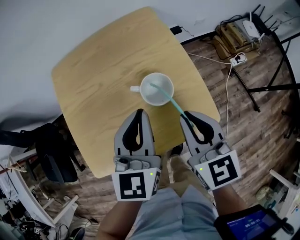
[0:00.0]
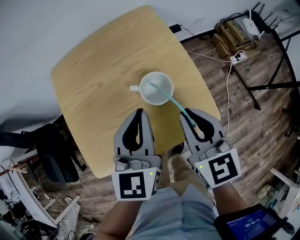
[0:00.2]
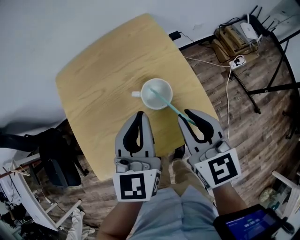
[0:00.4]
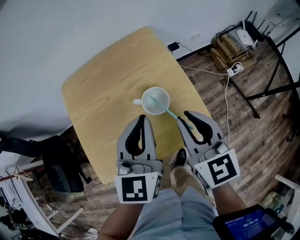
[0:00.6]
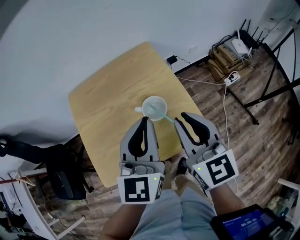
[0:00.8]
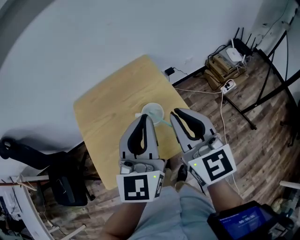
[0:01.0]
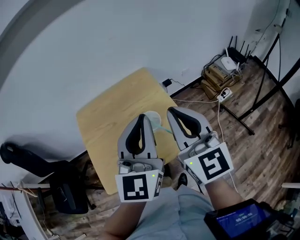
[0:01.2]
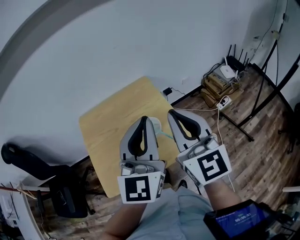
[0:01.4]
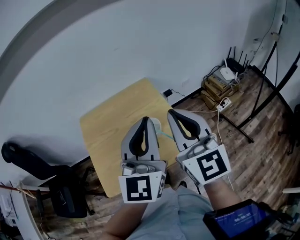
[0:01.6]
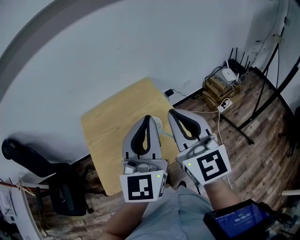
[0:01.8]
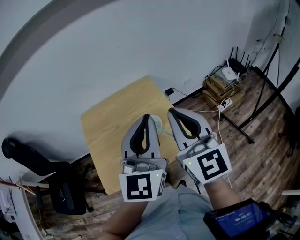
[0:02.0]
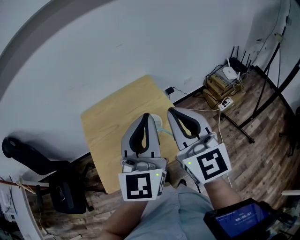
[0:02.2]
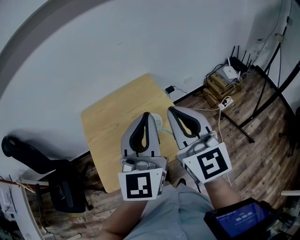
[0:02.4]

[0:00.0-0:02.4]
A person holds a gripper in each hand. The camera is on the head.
0:00.0 to 0:01.2: The grippers both shift upward by some 20 cm. The right gripper changes its angle by roughly 30 degrees; the left gripper rotates some 20 degrees.
0:01.2 to 0:02.4: There are only small adjustments of the grippers.

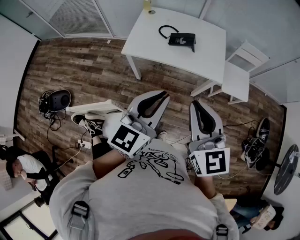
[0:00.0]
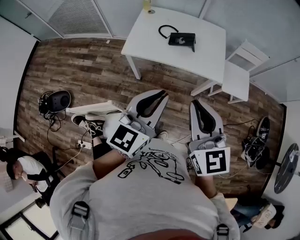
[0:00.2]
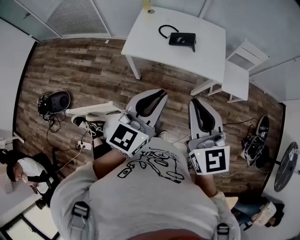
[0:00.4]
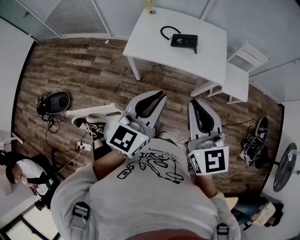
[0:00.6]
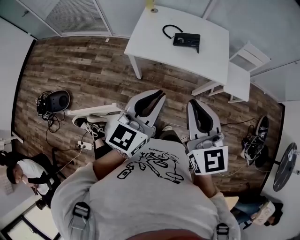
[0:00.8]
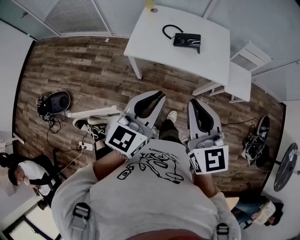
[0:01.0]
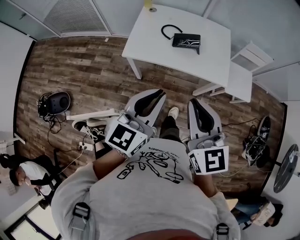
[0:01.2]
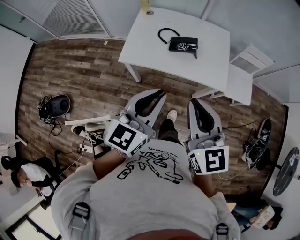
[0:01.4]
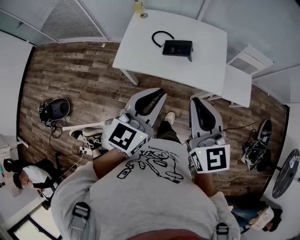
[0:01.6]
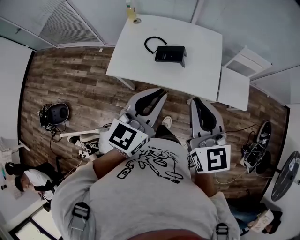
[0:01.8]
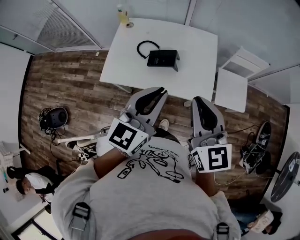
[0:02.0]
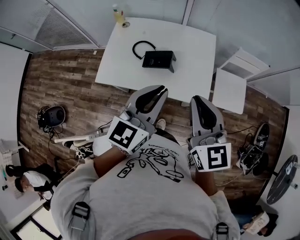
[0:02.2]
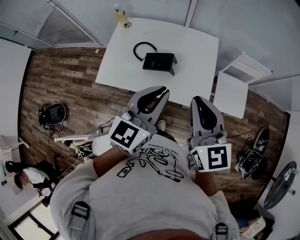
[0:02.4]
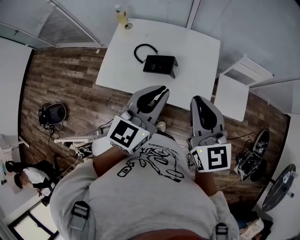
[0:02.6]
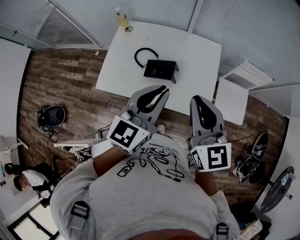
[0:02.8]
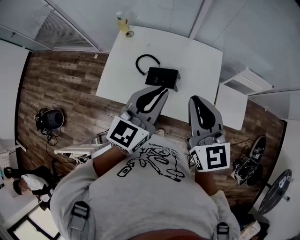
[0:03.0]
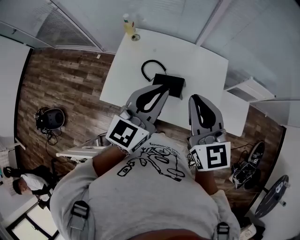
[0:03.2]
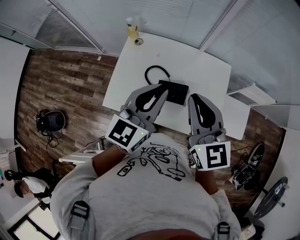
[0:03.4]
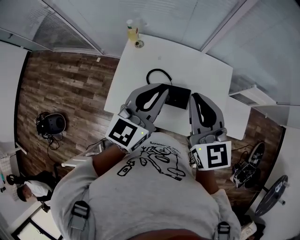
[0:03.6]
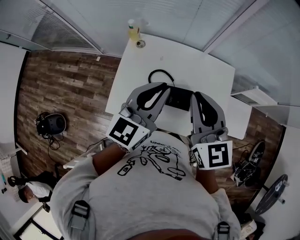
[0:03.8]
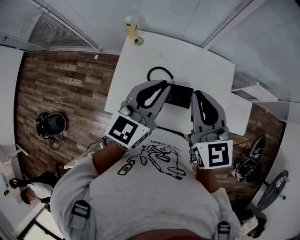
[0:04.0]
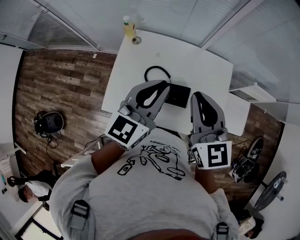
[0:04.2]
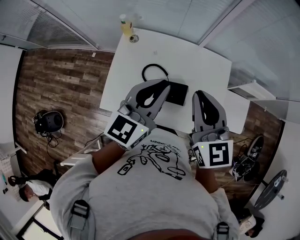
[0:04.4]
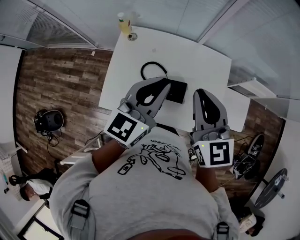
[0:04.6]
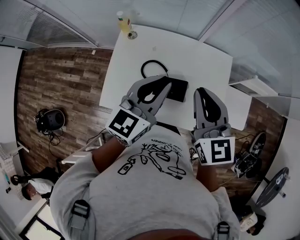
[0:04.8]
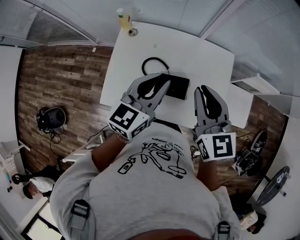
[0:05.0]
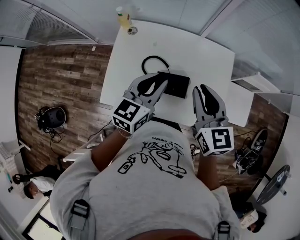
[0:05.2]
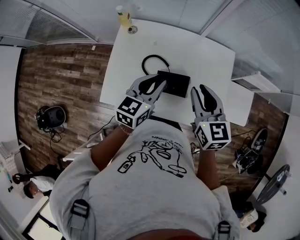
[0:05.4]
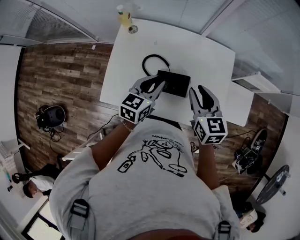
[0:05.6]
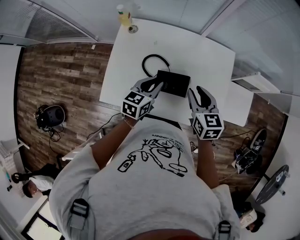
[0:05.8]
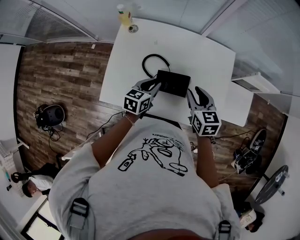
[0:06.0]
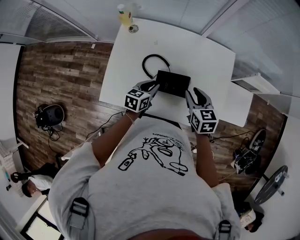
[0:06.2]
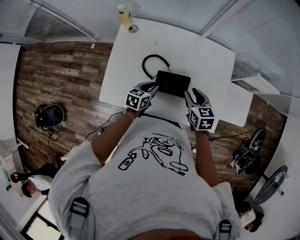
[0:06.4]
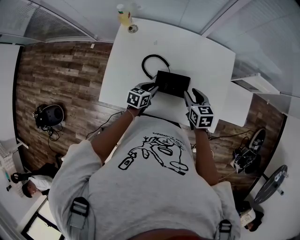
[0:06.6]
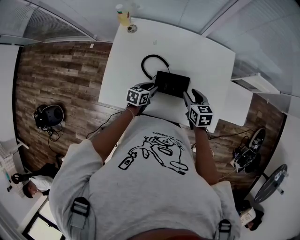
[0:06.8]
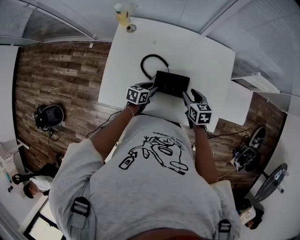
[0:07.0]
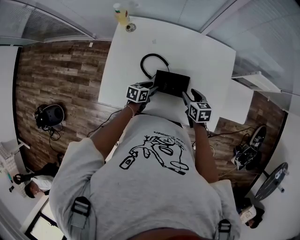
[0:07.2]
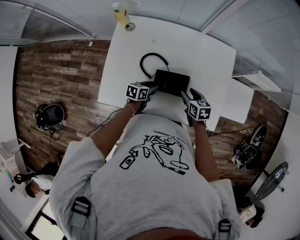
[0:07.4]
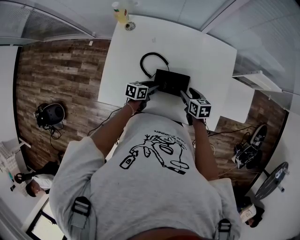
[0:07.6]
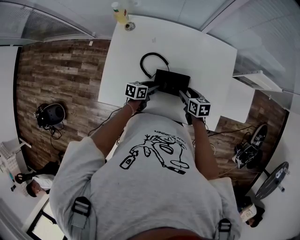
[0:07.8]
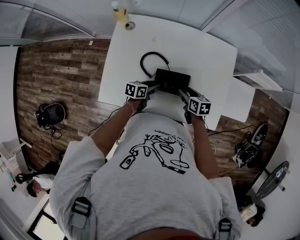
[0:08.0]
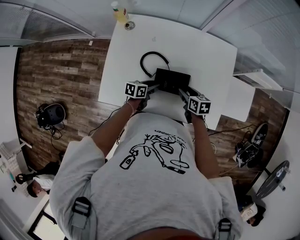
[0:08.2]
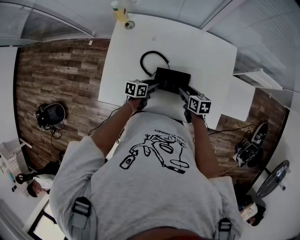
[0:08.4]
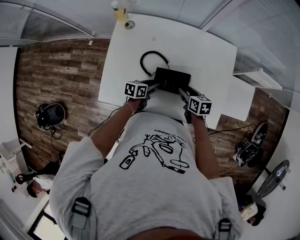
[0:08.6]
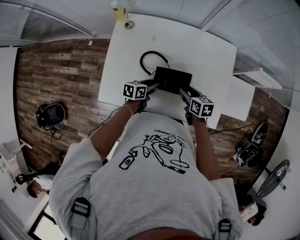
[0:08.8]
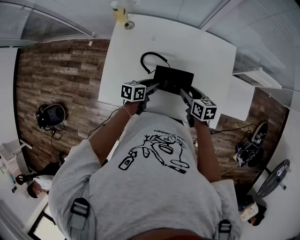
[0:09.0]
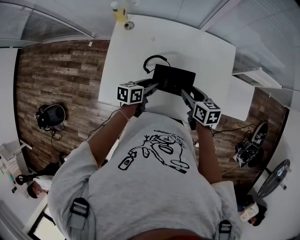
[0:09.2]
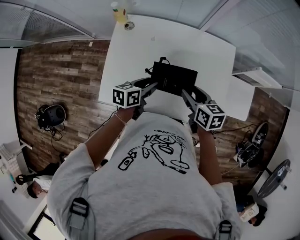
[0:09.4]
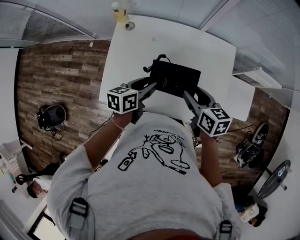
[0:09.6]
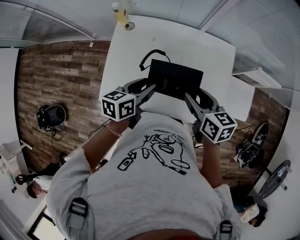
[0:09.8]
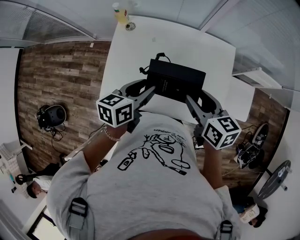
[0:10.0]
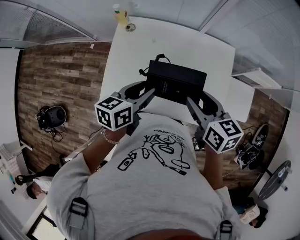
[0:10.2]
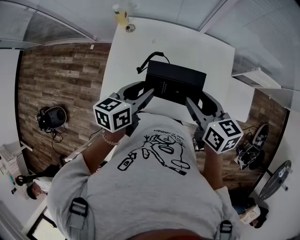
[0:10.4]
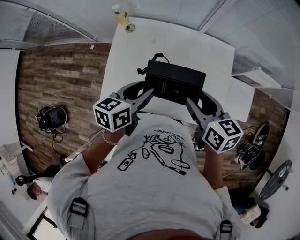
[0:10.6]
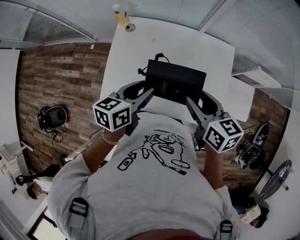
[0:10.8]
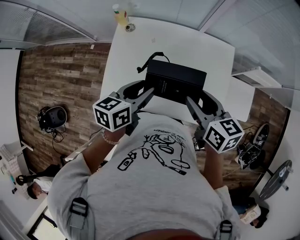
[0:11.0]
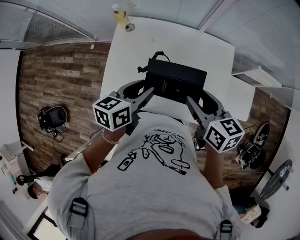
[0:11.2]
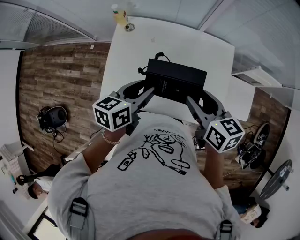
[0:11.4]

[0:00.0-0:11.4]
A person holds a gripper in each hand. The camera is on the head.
0:00.0 to 0:01.4: Both grippers travel together forward, approximately 10 cm.
0:01.4 to 0:02.8: Both grippers travel together forward and to the right, about 30 cm.
0:02.8 to 0:04.2: The two grippers go some 20 cm forward and to the left.
0:04.2 to 0:05.6: Both grippers move downward, approximately 15 cm. The right gripper turns by some 20 degrees, and opens its fingers; the left gripper changes its angle by about 20 degrees.
0:05.6 to 0:07.2: Both grippers travel together downward, approximately 25 cm. The left gripper swivels about 30 degrees; the right gripper rotates some 20 degrees.
0:07.2 to 0:08.6: The grippers stay close to where they were, moving slightly.
0:08.6 to 0:10.0: Both grippers move upward, about 25 cm.
0:10.0 to 0:11.4: The grippers move only a little.

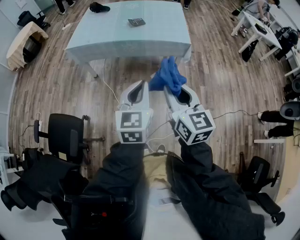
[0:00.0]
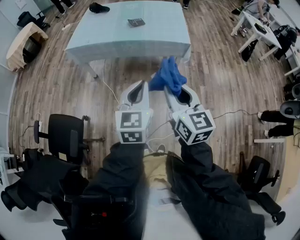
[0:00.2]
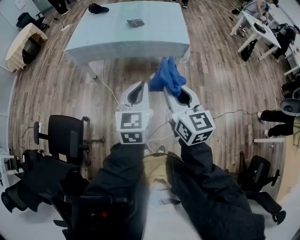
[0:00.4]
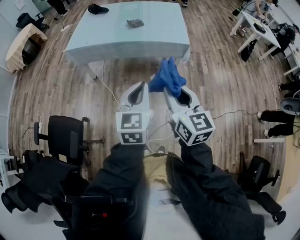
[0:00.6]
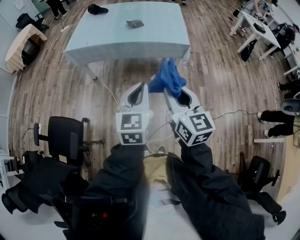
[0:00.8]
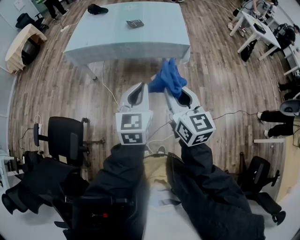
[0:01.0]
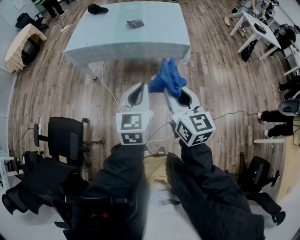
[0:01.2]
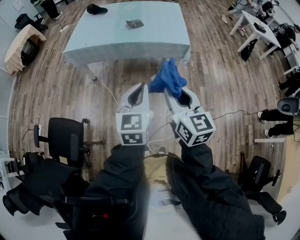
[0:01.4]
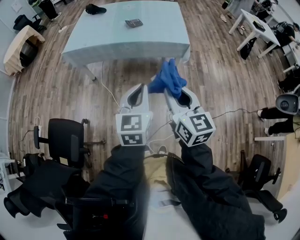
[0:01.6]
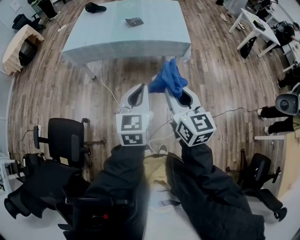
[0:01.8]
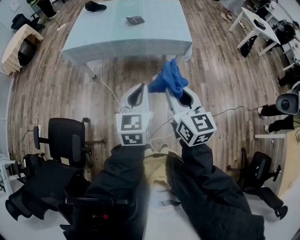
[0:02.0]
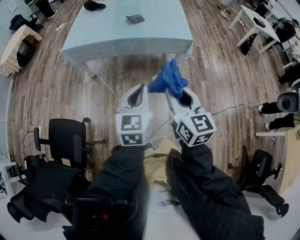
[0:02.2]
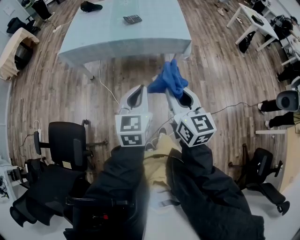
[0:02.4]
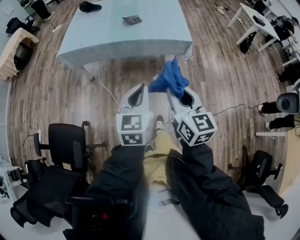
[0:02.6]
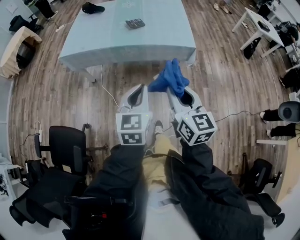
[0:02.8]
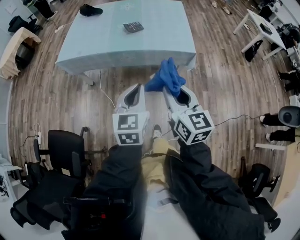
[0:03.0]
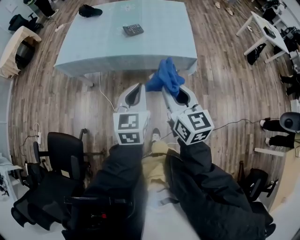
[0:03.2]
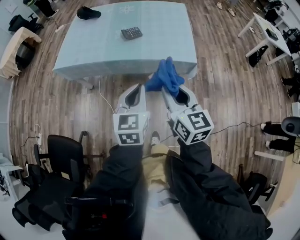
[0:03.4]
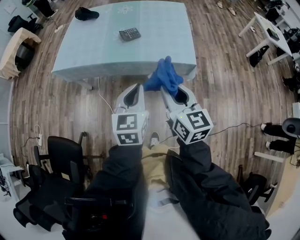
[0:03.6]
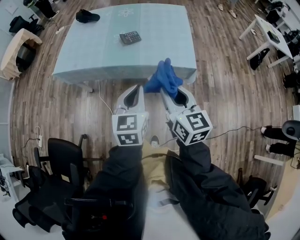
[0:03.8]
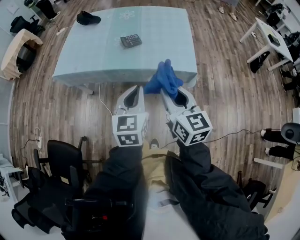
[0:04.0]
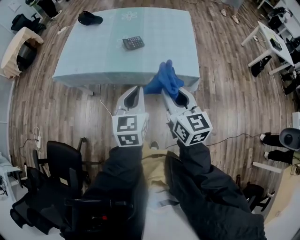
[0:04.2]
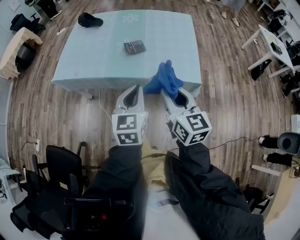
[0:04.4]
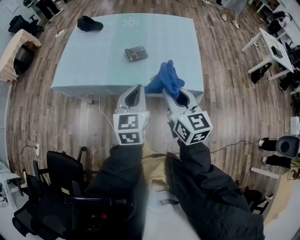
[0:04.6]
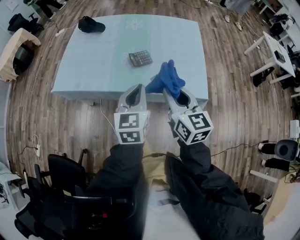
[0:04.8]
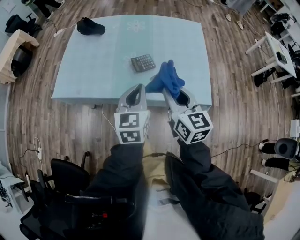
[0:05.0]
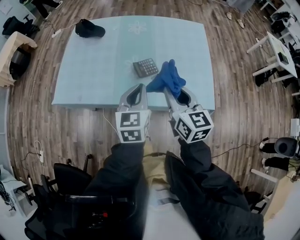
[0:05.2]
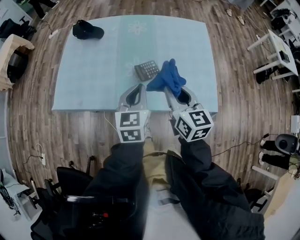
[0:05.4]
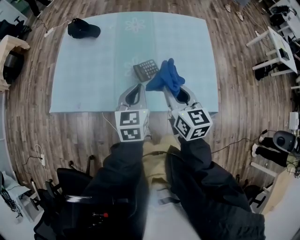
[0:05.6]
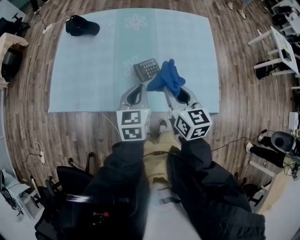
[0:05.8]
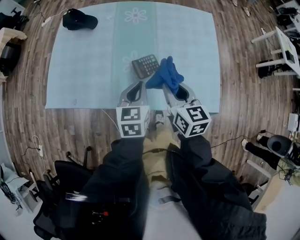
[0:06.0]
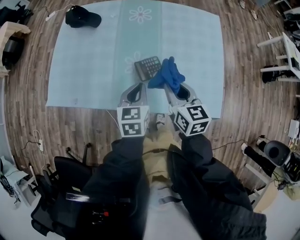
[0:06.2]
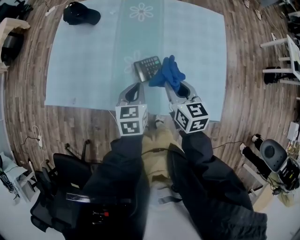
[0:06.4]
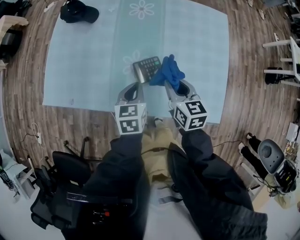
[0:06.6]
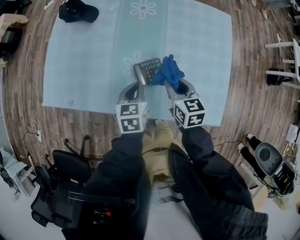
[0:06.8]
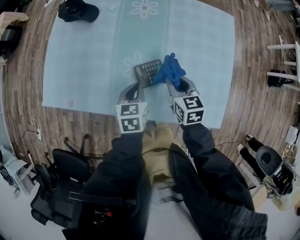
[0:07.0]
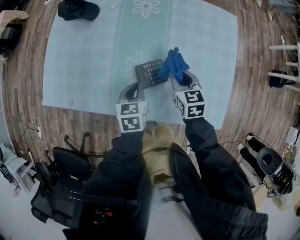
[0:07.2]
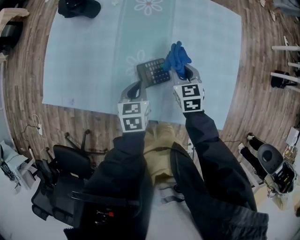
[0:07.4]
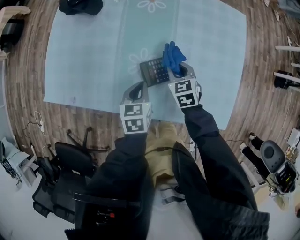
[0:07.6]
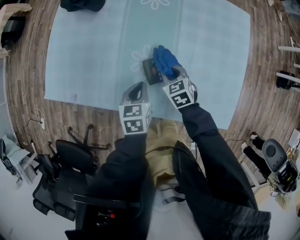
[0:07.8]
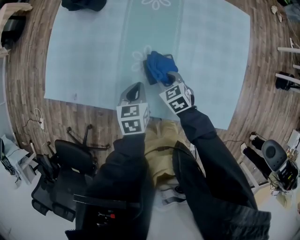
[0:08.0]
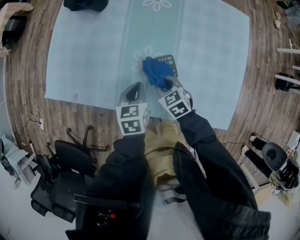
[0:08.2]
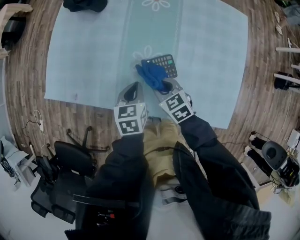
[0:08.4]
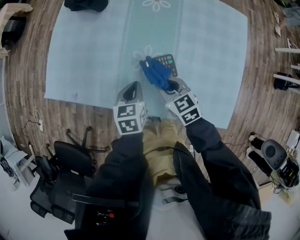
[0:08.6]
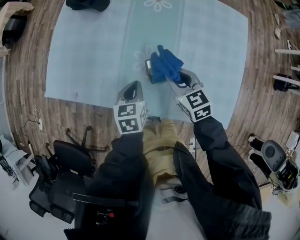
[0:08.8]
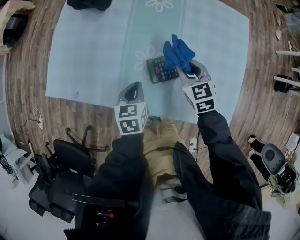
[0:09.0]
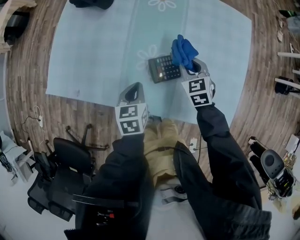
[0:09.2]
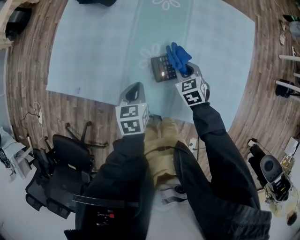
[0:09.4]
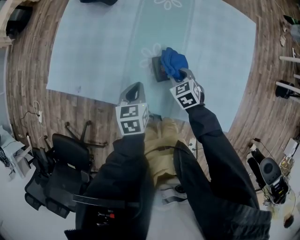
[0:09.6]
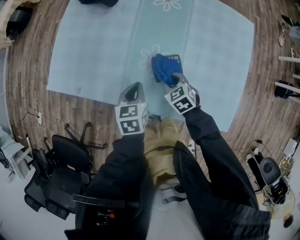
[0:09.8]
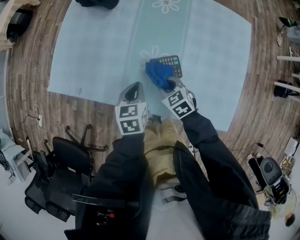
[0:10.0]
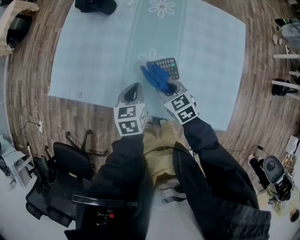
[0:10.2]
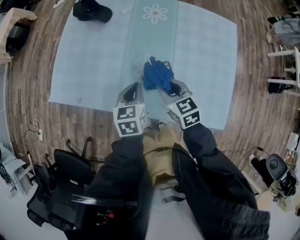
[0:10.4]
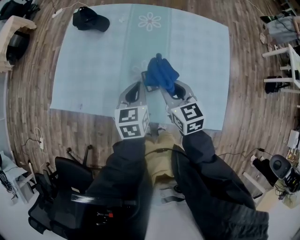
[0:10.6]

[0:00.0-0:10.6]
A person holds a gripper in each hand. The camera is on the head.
0:00.0 to 0:01.6: The grippers make only small movements.
0:01.6 to 0:03.0: Both grippers move forward, approximately 15 cm.
0:03.0 to 0:04.6: The grippers both shift forward by approximately 25 cm.
0:04.6 to 0:06.0: The grippers both shift forward by some 25 cm.
0:06.0 to 0:07.6: The right gripper heads downward and forward, covering some 25 cm, and turns by roughly 30 degrees. The left gripper goes approximately 15 cm downward and forward.
0:07.6 to 0:09.0: The right gripper heads upward, covering about 5 cm, and travels to the left and back again, some 10 cm each way.
0:09.0 to 0:10.6: The left gripper shifts about 10 cm upward. Meanwhile the right gripper moves upward, to the left and backward, about 15 cm.
